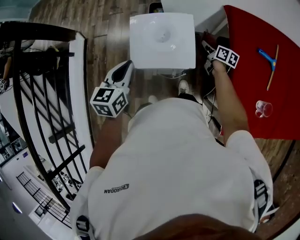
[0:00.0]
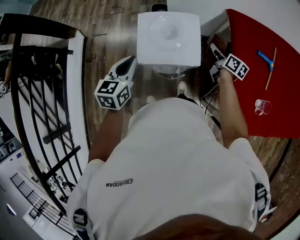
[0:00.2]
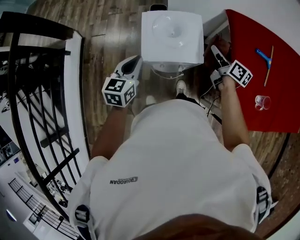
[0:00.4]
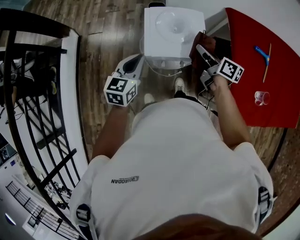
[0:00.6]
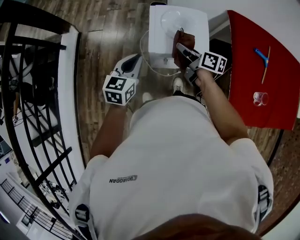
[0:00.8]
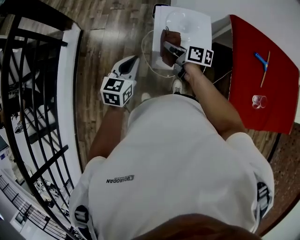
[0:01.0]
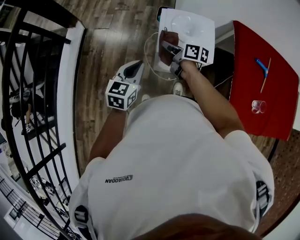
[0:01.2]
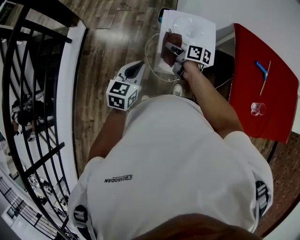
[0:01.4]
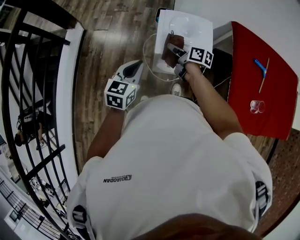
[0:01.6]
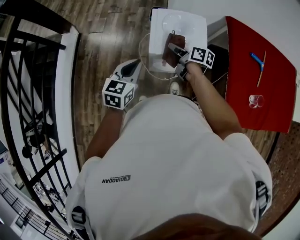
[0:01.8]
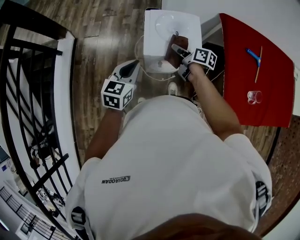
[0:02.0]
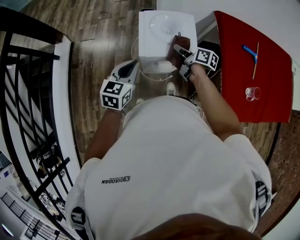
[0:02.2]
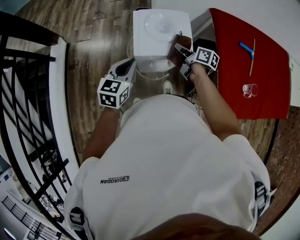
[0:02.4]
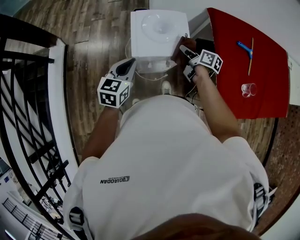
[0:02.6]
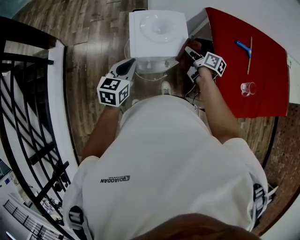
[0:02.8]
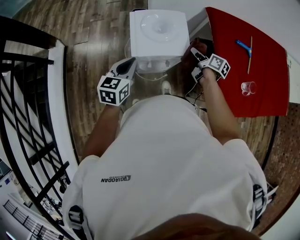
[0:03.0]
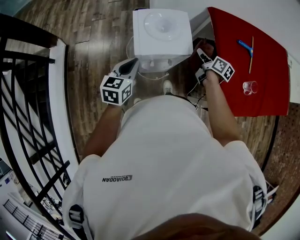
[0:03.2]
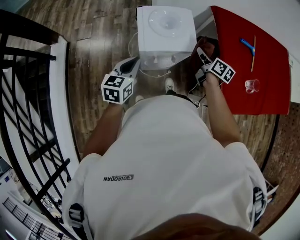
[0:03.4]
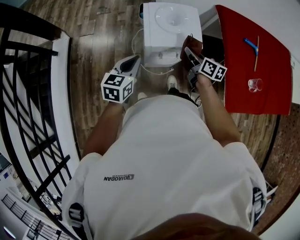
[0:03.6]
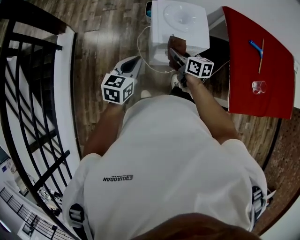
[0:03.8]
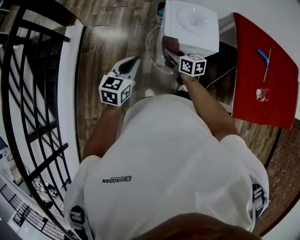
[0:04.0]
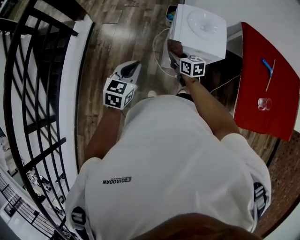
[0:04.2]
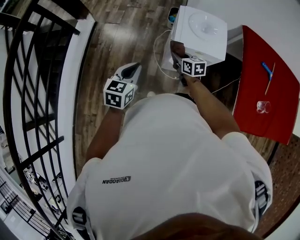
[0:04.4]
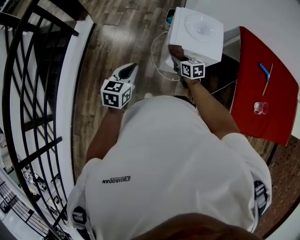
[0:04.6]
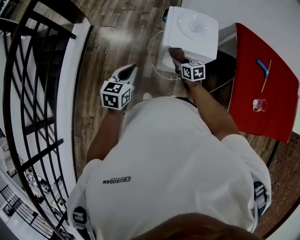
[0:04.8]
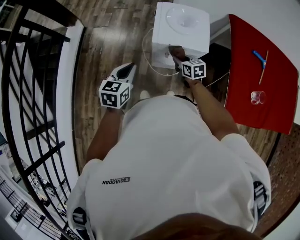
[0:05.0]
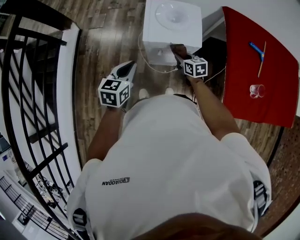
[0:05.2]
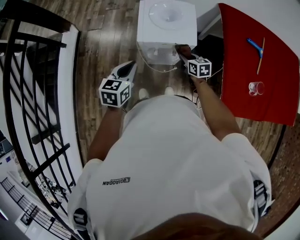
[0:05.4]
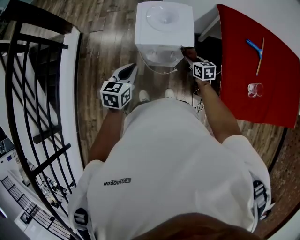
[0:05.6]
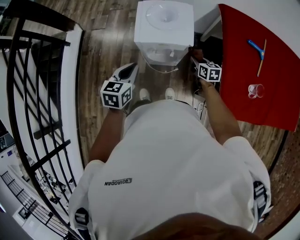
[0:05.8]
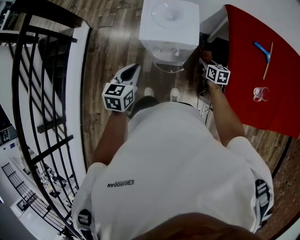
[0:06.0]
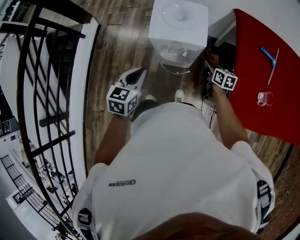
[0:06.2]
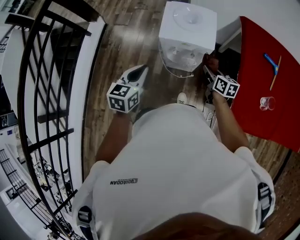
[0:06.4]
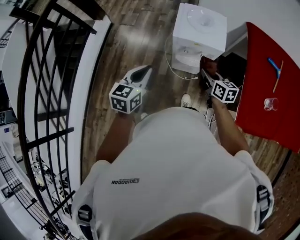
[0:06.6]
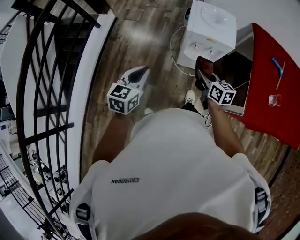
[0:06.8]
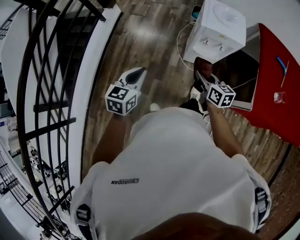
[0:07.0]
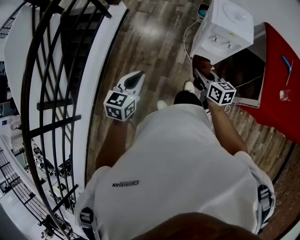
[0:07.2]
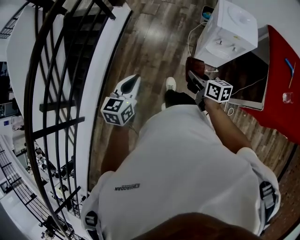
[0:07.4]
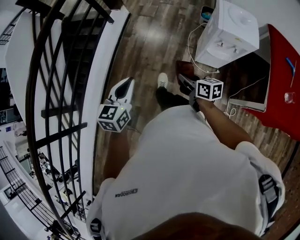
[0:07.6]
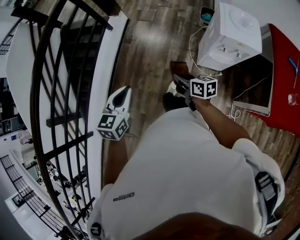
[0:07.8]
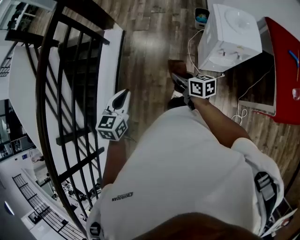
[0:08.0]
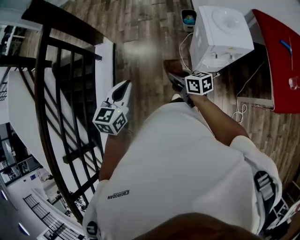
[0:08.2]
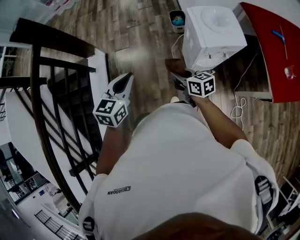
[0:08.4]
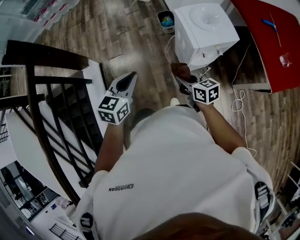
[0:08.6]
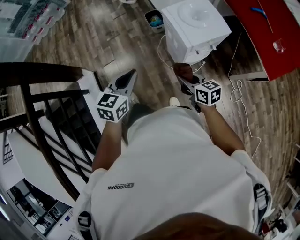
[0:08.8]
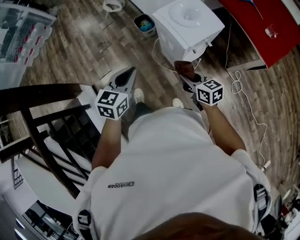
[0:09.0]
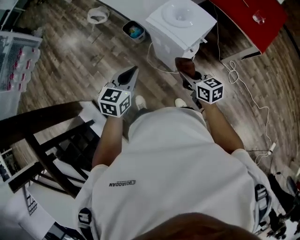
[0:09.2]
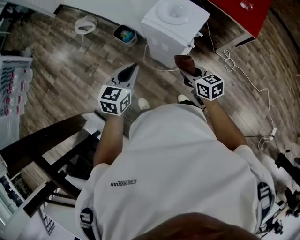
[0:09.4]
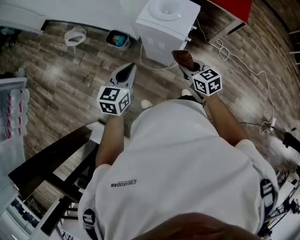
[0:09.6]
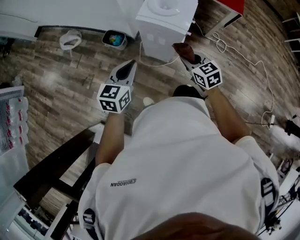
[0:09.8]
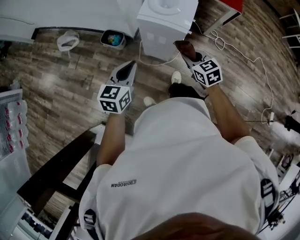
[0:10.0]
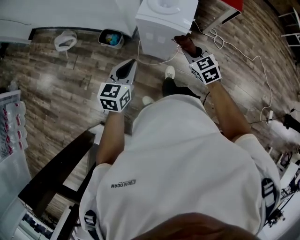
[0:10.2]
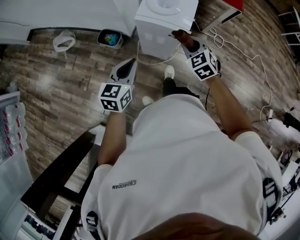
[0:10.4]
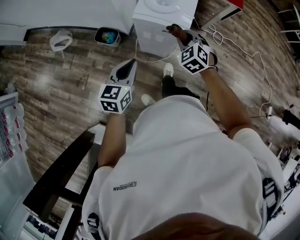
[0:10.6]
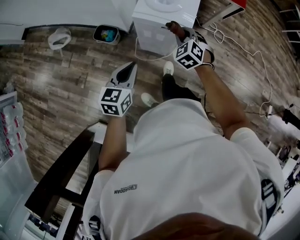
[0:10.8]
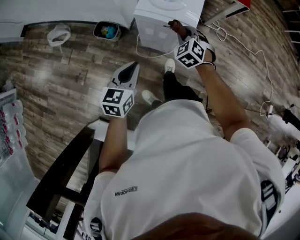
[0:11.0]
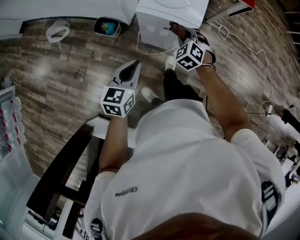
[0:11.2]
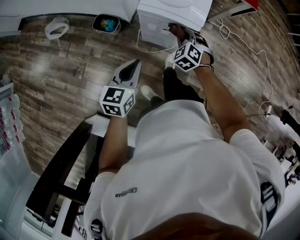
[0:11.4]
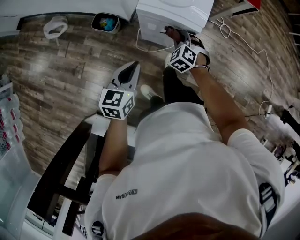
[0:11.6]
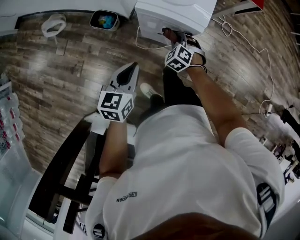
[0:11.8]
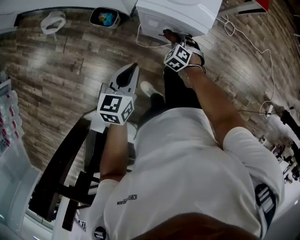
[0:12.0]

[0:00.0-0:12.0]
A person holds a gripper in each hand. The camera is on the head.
0:00.0 to 0:01.6: The right gripper heads to the left, covering some 30 cm. Meanwhile the left gripper goes roughly 15 cm to the left and backward.
0:01.6 to 0:03.0: The right gripper is displaced to the right by approximately 25 cm, and changes its angle by approximately 30 degrees, while the left gripper goes roughly 5 cm to the right.
0:03.0 to 0:04.4: The left gripper is displaced to the left and backward by some 20 cm. Meanwhile the right gripper shifts some 30 cm to the left, and rolls counterclockwise, seen from behind, by some 40 degrees.
0:04.4 to 0:06.0: The right gripper moves to the right, approximately 30 cm, while the left gripper moves to the right, about 15 cm.
0:06.0 to 0:07.6: The pair of grippers is taken to the left, about 50 cm. The right gripper changes its angle by about 30 degrees.
0:07.6 to 0:09.0: The right gripper moves roughly 25 cm, and rotates some 40 degrees. Meanwhile the left gripper shifts by about 40 cm, and turns by some 60 degrees.
0:09.0 to 0:10.4: The left gripper changes place by approximately 15 cm, and swivels about 30 degrees. The right gripper moves some 10 cm, and turns by approximately 60 degrees.
0:10.4 to 0:12.0: The left gripper moves downward, approximately 10 cm. The right gripper heads downward, covering roughly 25 cm, and rotates about 20 degrees.

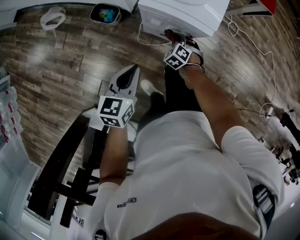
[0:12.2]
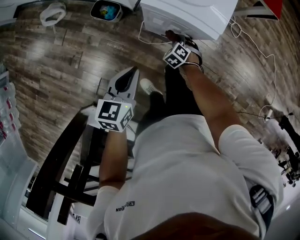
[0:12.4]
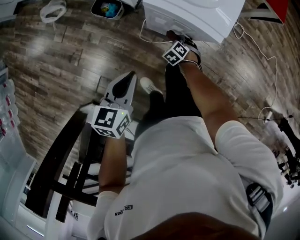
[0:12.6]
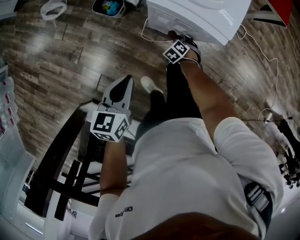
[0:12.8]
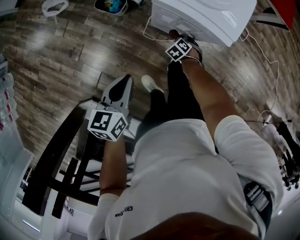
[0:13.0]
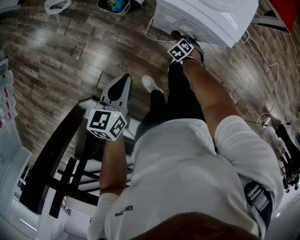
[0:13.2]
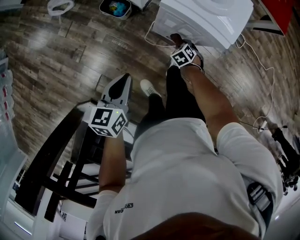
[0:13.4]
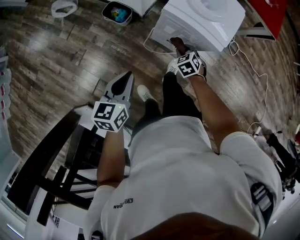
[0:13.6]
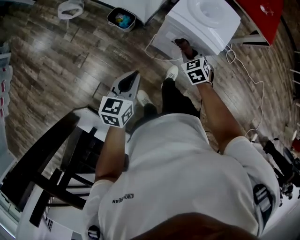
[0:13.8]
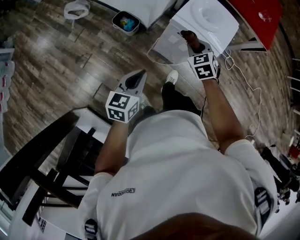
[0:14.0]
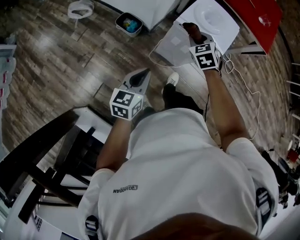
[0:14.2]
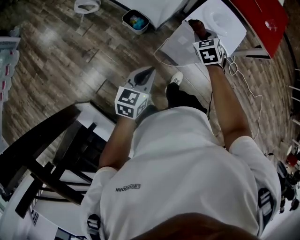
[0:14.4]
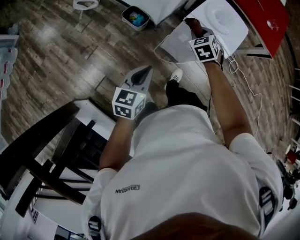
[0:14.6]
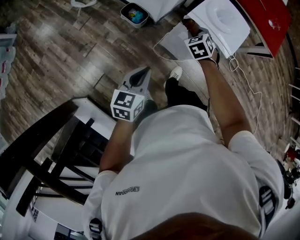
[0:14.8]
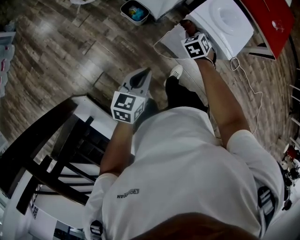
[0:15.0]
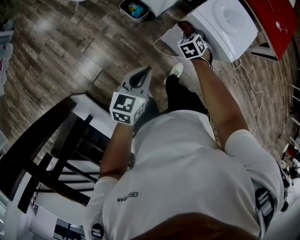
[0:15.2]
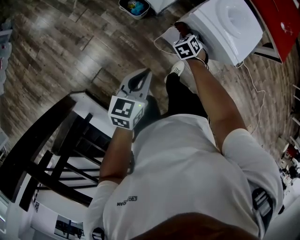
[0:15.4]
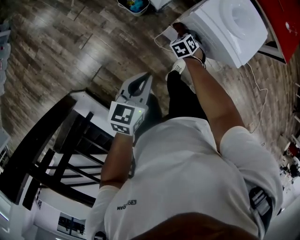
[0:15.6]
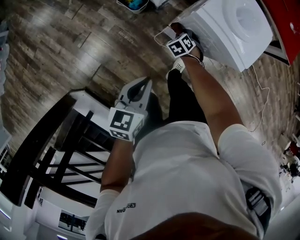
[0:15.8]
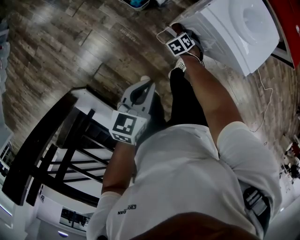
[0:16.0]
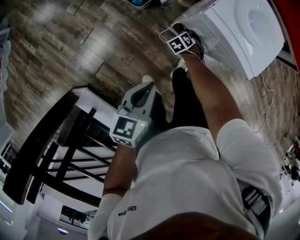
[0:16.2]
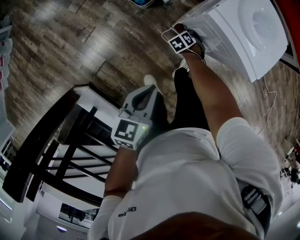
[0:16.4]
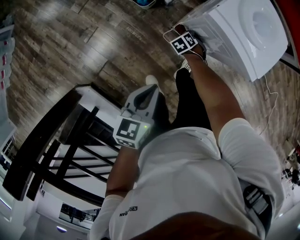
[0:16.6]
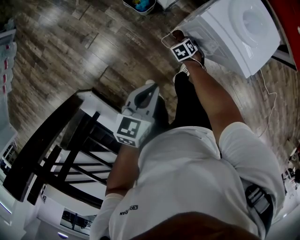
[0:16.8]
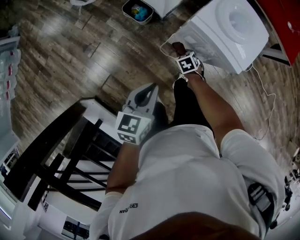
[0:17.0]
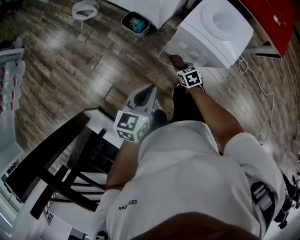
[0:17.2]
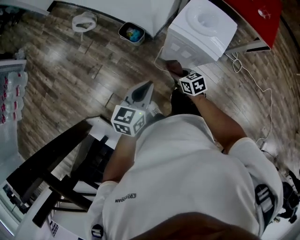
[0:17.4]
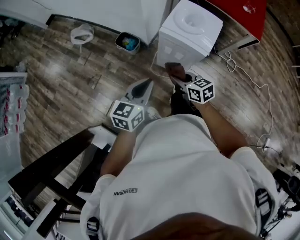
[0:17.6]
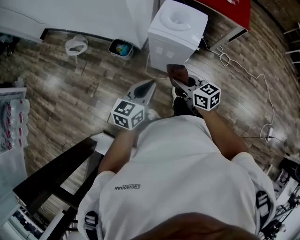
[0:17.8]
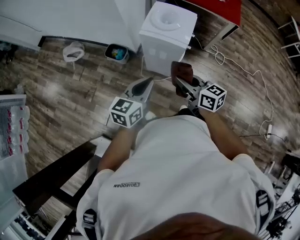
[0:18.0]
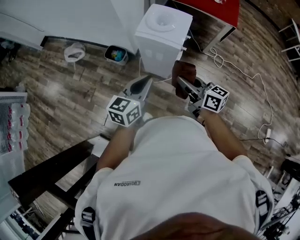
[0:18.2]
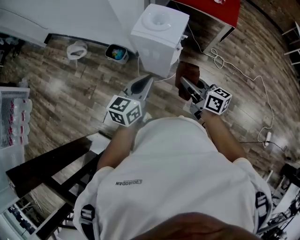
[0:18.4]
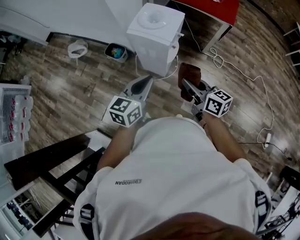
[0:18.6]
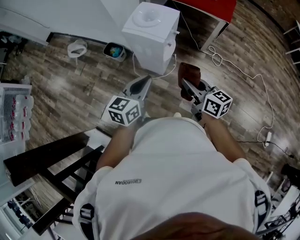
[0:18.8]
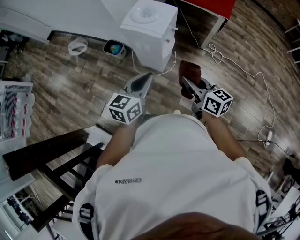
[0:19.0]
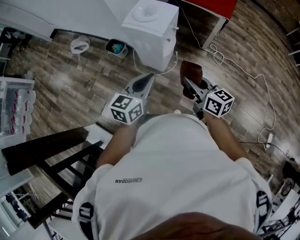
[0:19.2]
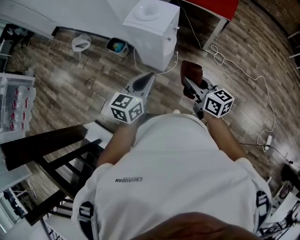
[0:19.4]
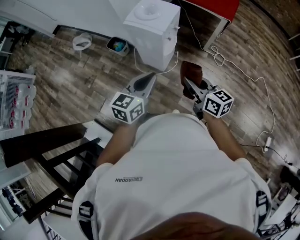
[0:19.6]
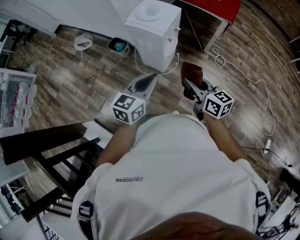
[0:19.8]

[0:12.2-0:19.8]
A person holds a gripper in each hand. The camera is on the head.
0:12.2 to 0:13.8: The right gripper travels upward by some 15 cm, while the left gripper moves some 5 cm.
0:13.8 to 0:15.2: The right gripper is displaced to the left and forward by about 10 cm, and travels upward and back again, about 10 cm each way.
0:15.2 to 0:16.8: The right gripper shifts roughly 20 cm downward.
0:16.8 to 0:18.2: The right gripper moves upward and backward, approximately 50 cm, and angles its fingers upward, by roughly 70 degrees. Meanwhile the left gripper travels upward and to the right by some 20 cm, and swivels about 30 degrees.
0:18.2 to 0:19.8: Both grippers move to the right and backward, about 20 cm.

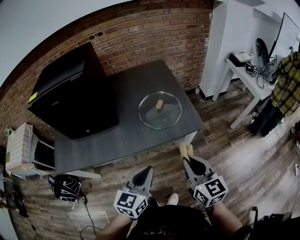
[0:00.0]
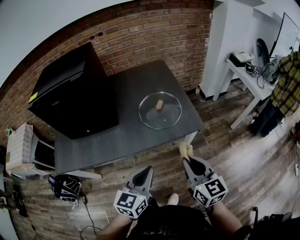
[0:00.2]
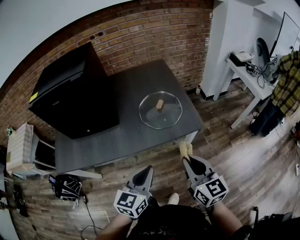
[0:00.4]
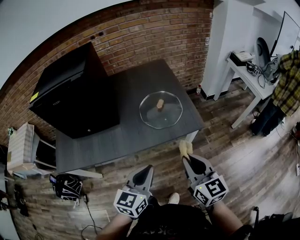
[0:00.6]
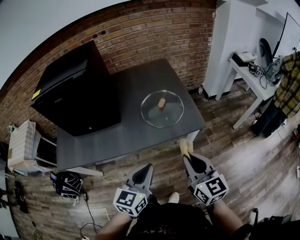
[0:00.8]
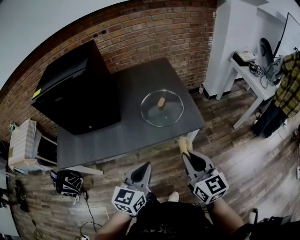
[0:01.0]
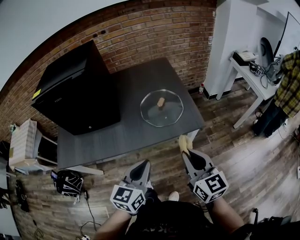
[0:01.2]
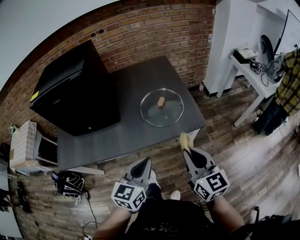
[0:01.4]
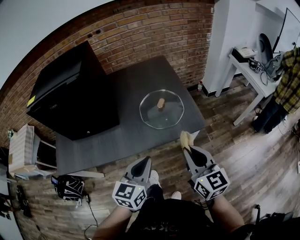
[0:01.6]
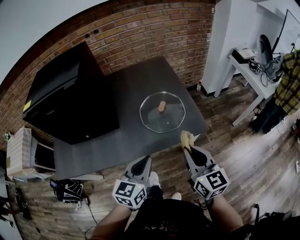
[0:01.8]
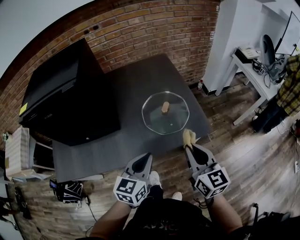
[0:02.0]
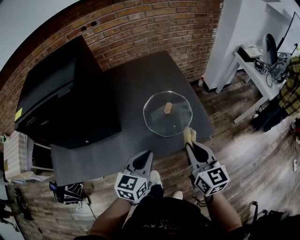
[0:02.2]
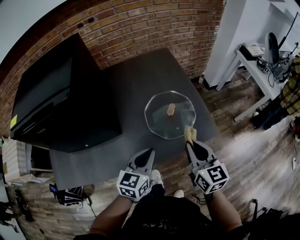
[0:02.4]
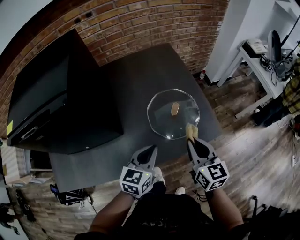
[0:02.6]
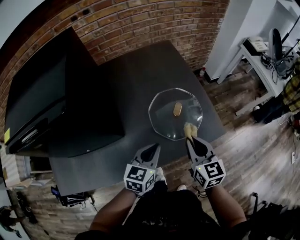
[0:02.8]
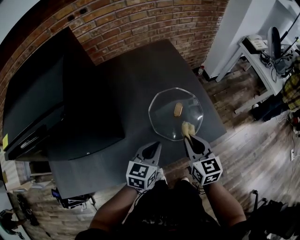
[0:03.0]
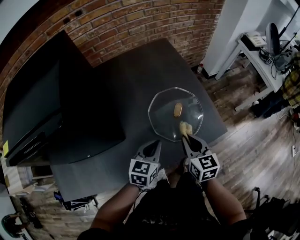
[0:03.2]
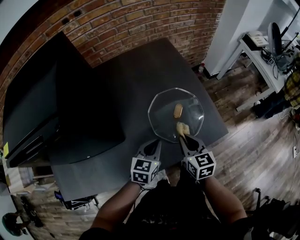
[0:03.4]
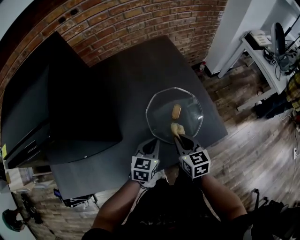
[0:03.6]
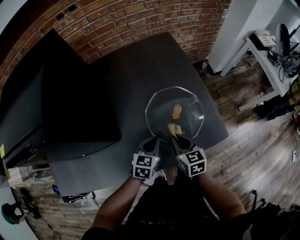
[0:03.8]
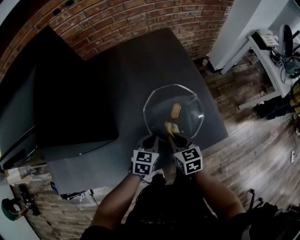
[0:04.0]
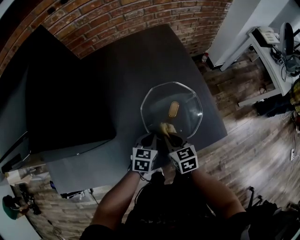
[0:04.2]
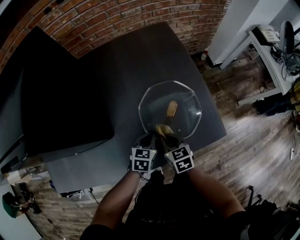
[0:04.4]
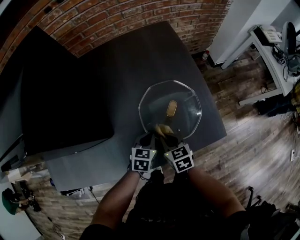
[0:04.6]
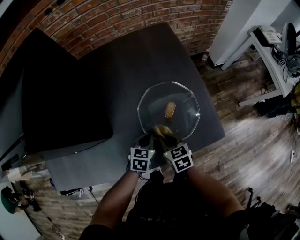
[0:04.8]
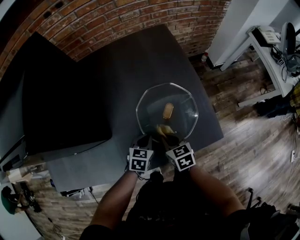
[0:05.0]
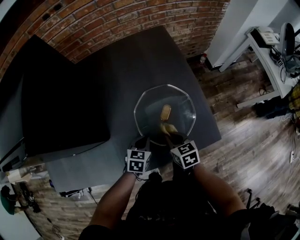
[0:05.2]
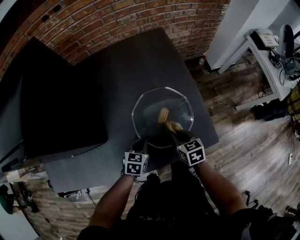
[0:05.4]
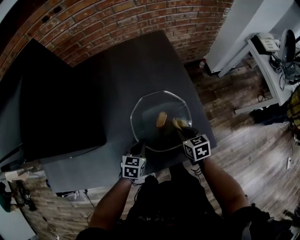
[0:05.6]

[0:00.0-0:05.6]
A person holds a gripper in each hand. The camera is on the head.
0:00.0 to 0:01.4: The grippers move only a little.
0:01.4 to 0:02.8: The right gripper goes some 25 cm forward, to the left and downward, while the left gripper travels forward and downward by about 25 cm.
0:02.8 to 0:04.2: The right gripper moves downward, roughly 15 cm, and rotates some 20 degrees, while the left gripper shifts some 15 cm downward and forward.
0:04.2 to 0:05.6: The right gripper goes roughly 15 cm to the right and forward.
